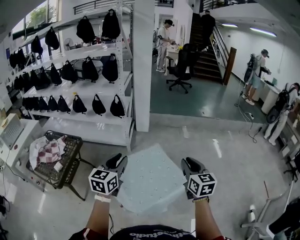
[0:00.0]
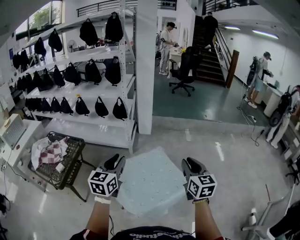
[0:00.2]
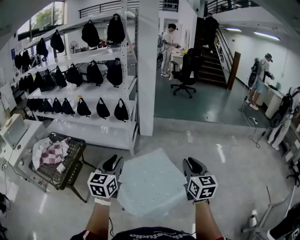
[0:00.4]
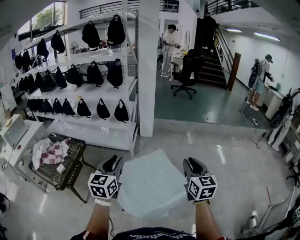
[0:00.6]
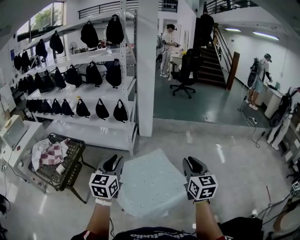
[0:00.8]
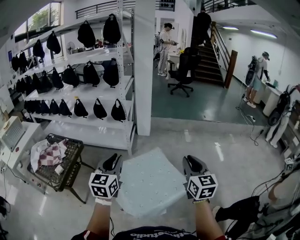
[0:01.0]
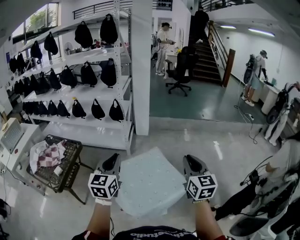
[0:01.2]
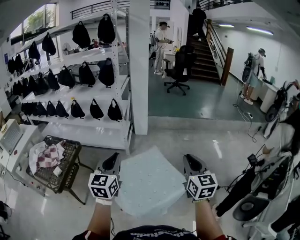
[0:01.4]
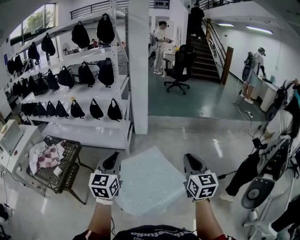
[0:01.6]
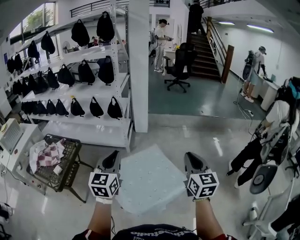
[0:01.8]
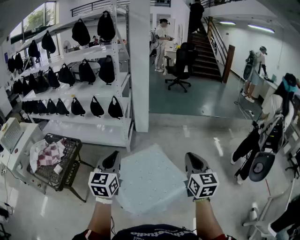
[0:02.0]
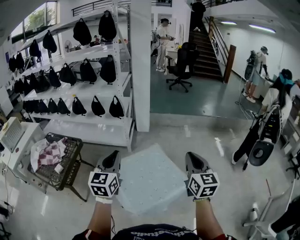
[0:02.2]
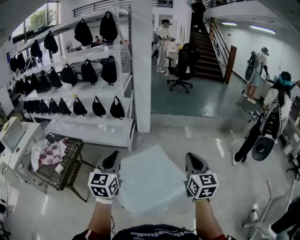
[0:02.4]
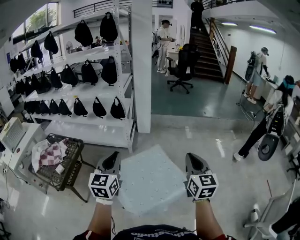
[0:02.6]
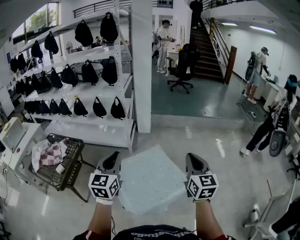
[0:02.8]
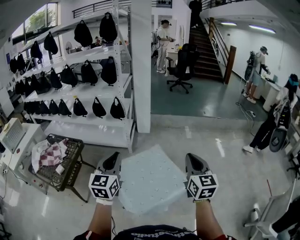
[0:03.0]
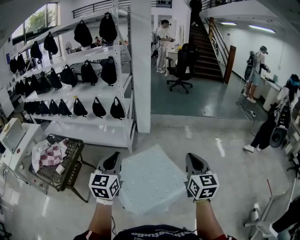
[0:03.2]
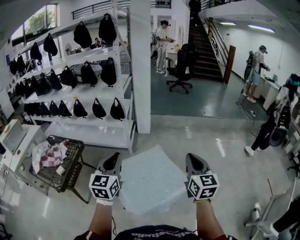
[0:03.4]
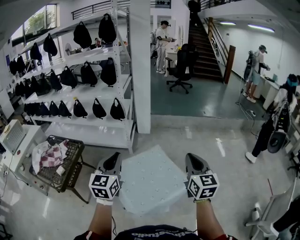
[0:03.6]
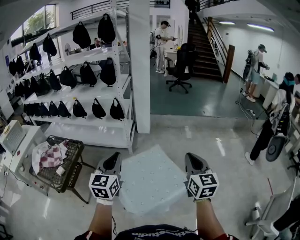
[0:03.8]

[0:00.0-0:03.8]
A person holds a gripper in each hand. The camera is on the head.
0:00.0 to 0:02.6: The grippers move only a little.
0:02.6 to 0:03.8: The two grippers keep their place.

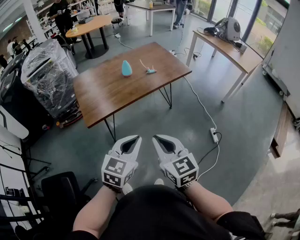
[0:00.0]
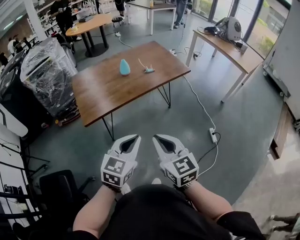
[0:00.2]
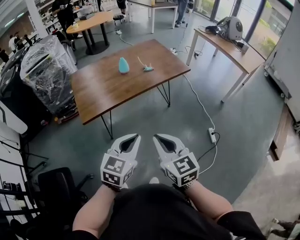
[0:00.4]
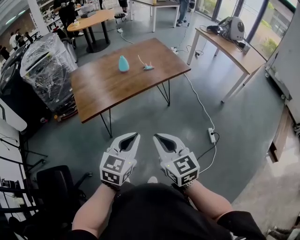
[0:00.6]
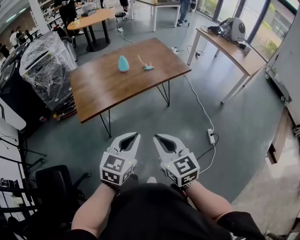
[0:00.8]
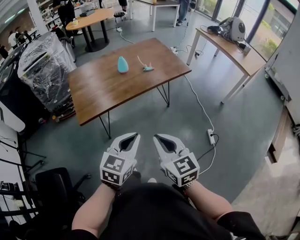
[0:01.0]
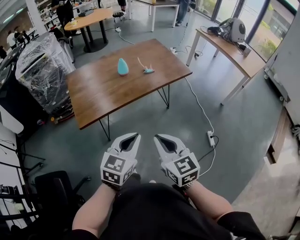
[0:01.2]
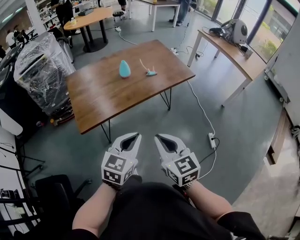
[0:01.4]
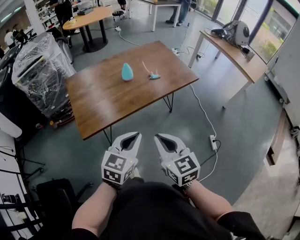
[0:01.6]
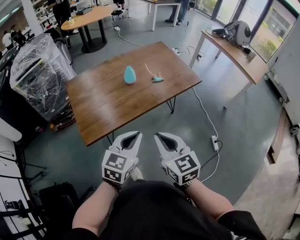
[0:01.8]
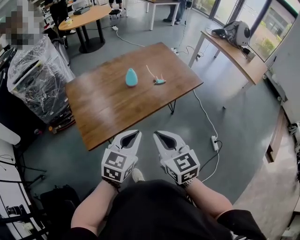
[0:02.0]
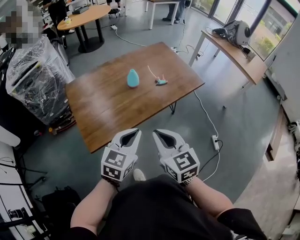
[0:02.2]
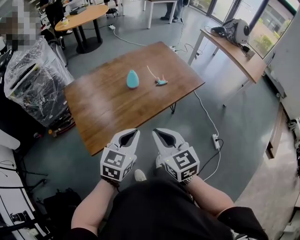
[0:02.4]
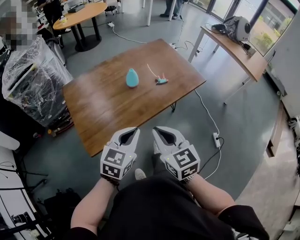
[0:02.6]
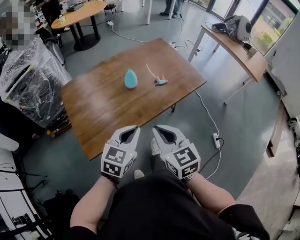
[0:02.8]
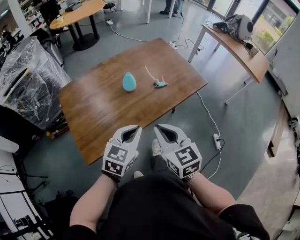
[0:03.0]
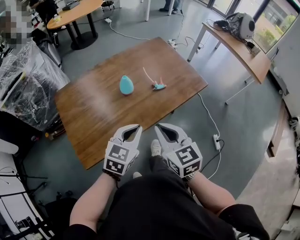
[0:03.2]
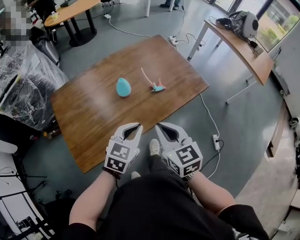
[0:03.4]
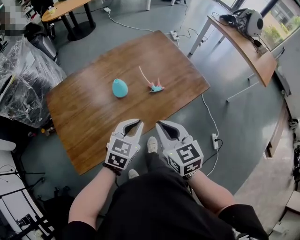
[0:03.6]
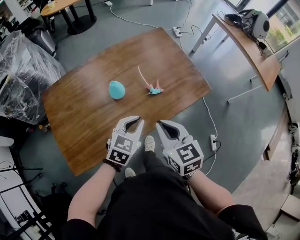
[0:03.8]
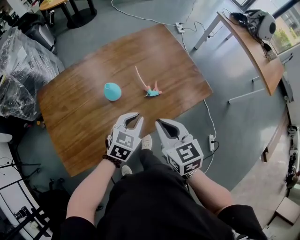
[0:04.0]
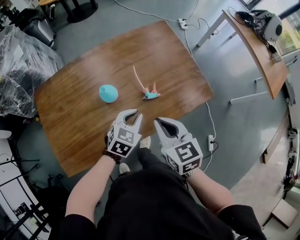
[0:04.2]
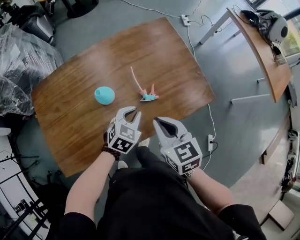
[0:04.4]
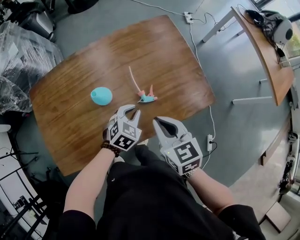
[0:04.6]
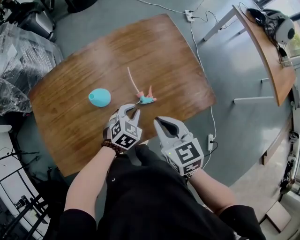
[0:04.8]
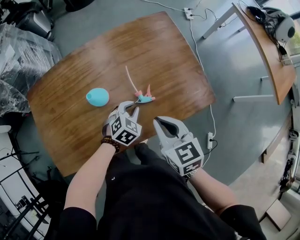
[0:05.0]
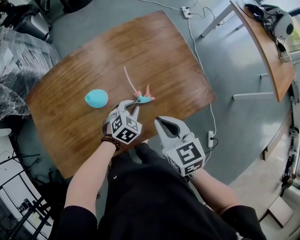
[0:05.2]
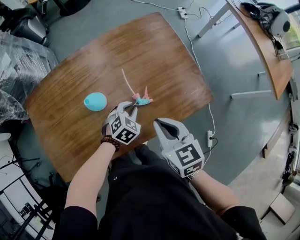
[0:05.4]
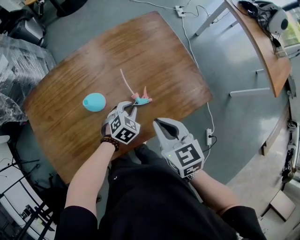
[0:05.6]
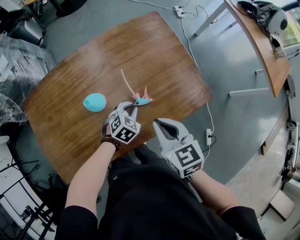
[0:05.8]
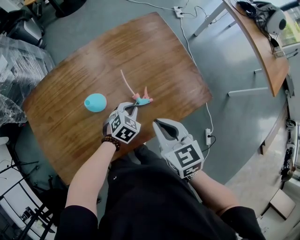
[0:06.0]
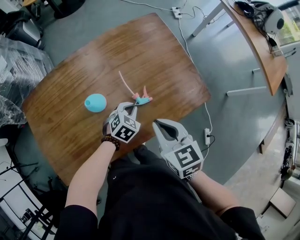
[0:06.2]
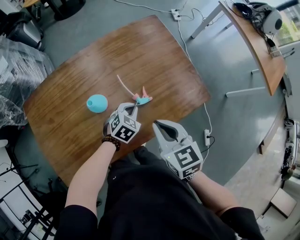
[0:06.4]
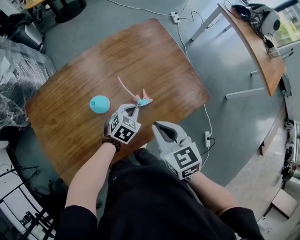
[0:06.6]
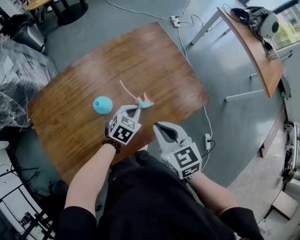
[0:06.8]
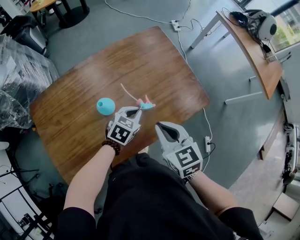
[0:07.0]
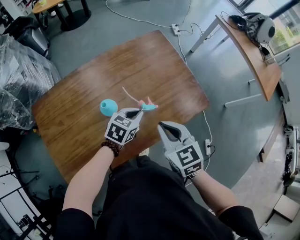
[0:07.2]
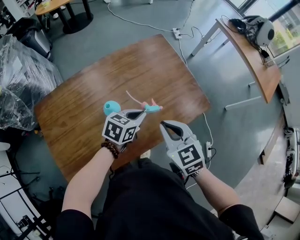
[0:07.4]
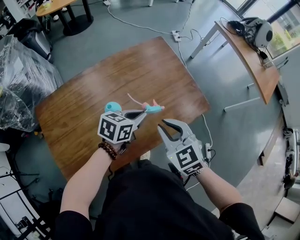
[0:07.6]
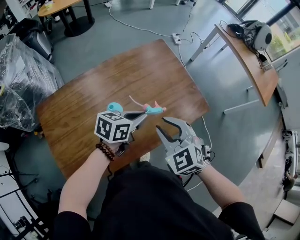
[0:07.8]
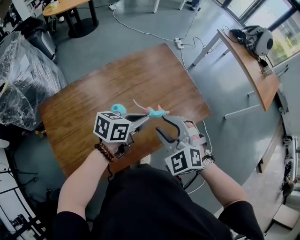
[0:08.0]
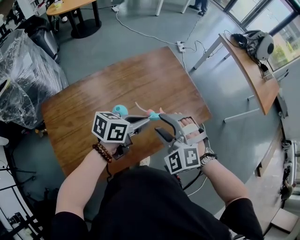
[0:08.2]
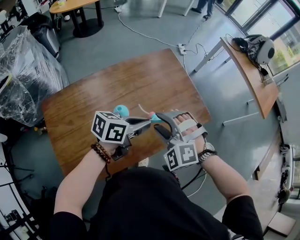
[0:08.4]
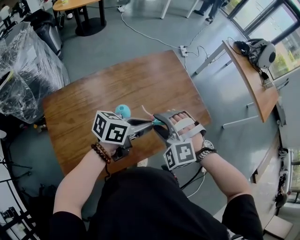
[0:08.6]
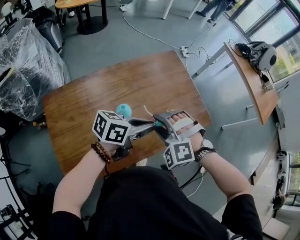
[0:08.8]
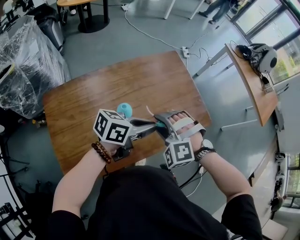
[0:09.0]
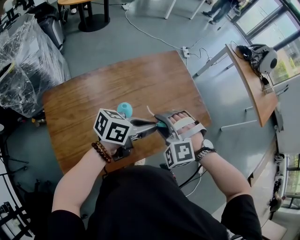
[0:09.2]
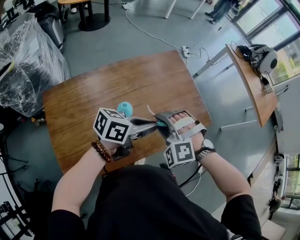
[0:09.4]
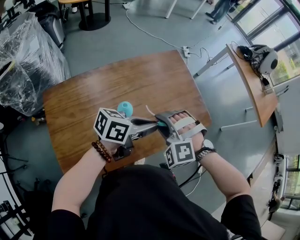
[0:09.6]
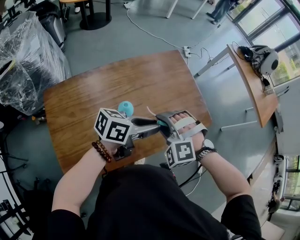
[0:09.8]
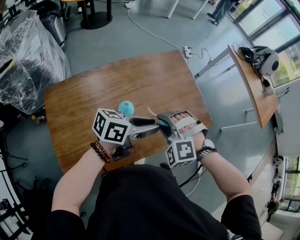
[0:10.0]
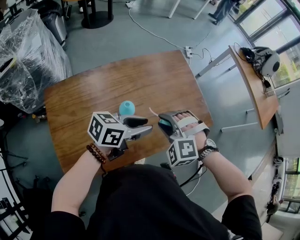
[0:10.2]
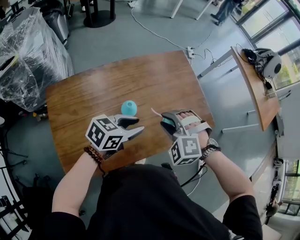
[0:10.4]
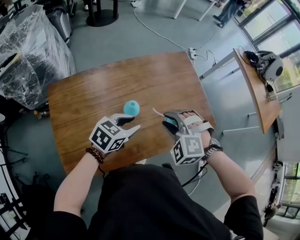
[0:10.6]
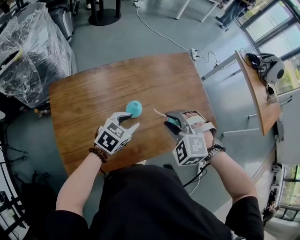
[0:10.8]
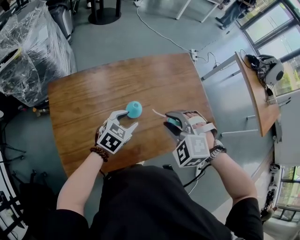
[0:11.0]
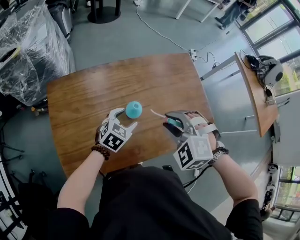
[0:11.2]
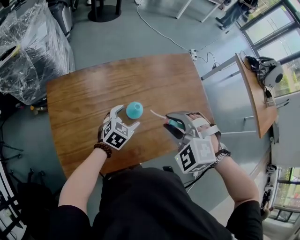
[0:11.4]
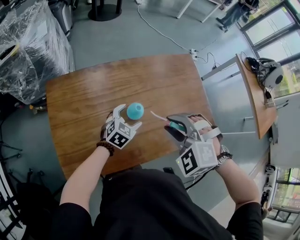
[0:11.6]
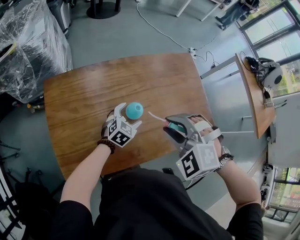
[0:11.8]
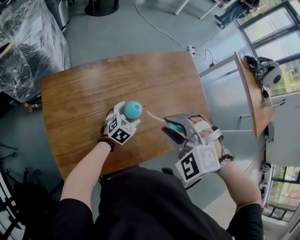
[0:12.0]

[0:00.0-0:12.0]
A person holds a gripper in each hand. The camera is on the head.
0:00.0 to 0:01.6: Both grippers travel together forward, about 15 cm.
0:01.6 to 0:03.0: The grippers both shift forward by some 15 cm.
0:03.0 to 0:04.4: The left gripper shifts about 30 cm forward and downward, and swivels some 20 degrees. The right gripper travels forward and to the right by approximately 25 cm.
0:04.4 to 0:06.0: The left gripper shifts approximately 10 cm downward.
0:06.0 to 0:07.6: The left gripper shifts roughly 15 cm upward, and swivels some 40 degrees, while the right gripper ends up roughly 5 cm from where it was, and rotates roughly 20 degrees.
0:07.6 to 0:09.0: The right gripper goes approximately 5 cm to the left, twists roughly 60 degrees counterclockwise, seen from behind, and opens; the left gripper is displaced upward by about 10 cm, and swivels about 20 degrees.
0:09.0 to 0:10.4: The left gripper moves to the left and downward, roughly 10 cm, and turns by some 20 degrees.
0:10.4 to 0:12.0: The right gripper is displaced upward and to the left by approximately 10 cm, while the left gripper travels downward and forward by about 20 cm, turns by roughly 30 degrees, and opens.

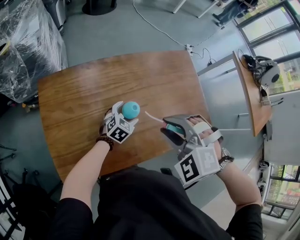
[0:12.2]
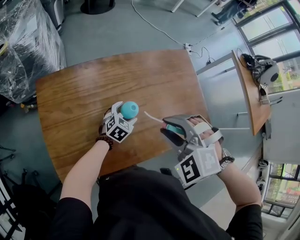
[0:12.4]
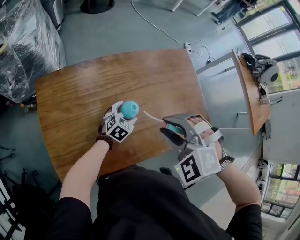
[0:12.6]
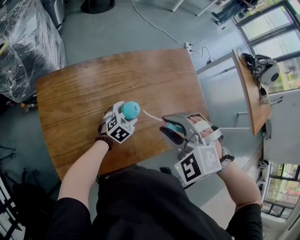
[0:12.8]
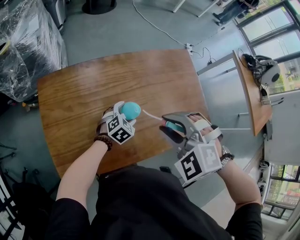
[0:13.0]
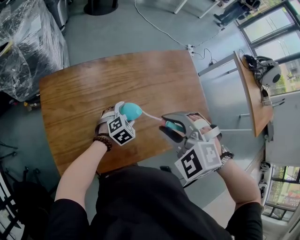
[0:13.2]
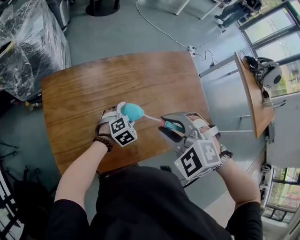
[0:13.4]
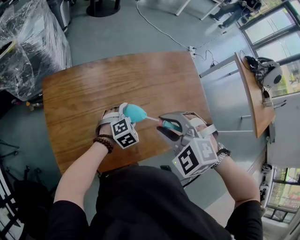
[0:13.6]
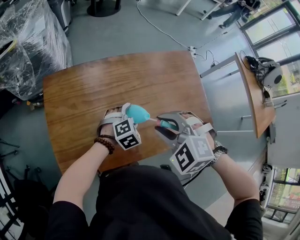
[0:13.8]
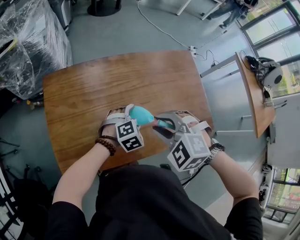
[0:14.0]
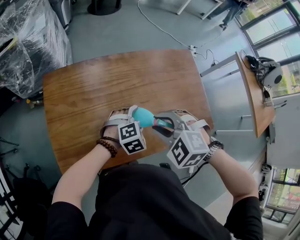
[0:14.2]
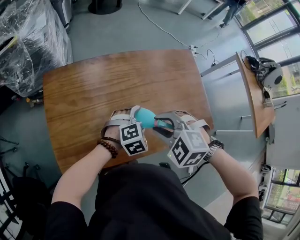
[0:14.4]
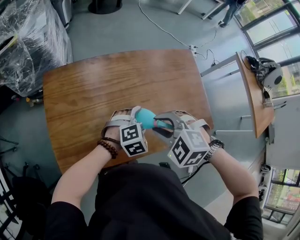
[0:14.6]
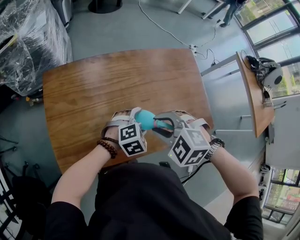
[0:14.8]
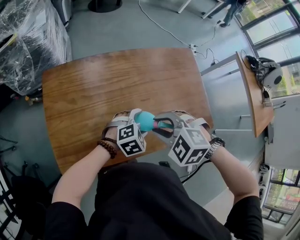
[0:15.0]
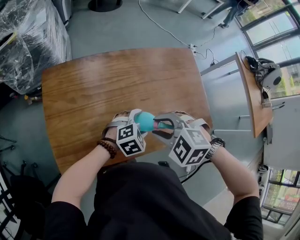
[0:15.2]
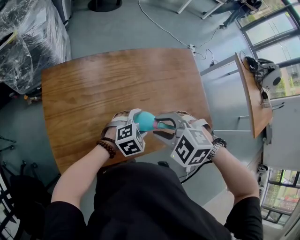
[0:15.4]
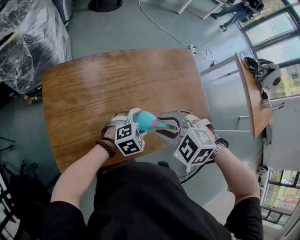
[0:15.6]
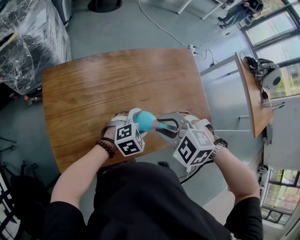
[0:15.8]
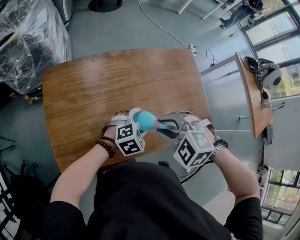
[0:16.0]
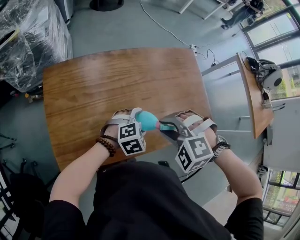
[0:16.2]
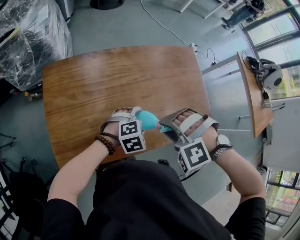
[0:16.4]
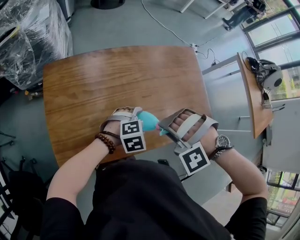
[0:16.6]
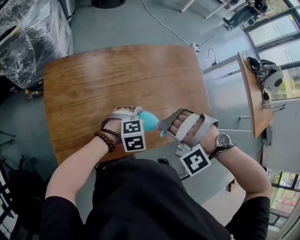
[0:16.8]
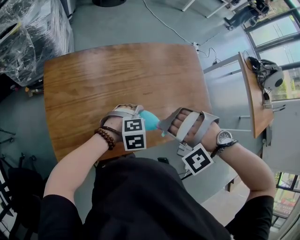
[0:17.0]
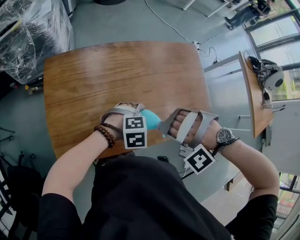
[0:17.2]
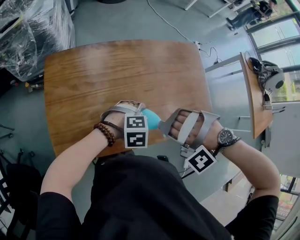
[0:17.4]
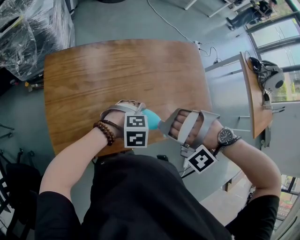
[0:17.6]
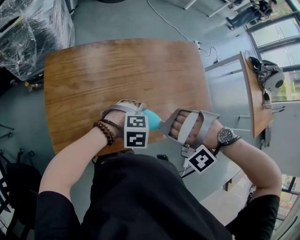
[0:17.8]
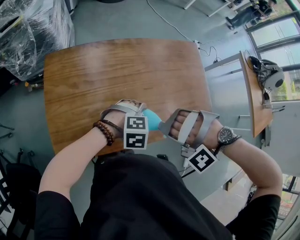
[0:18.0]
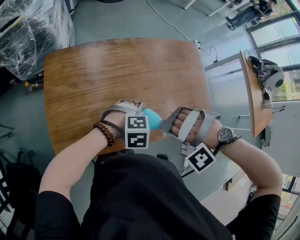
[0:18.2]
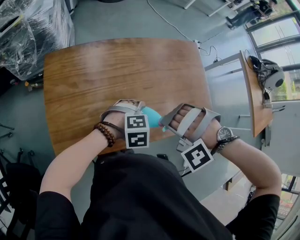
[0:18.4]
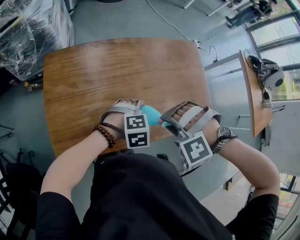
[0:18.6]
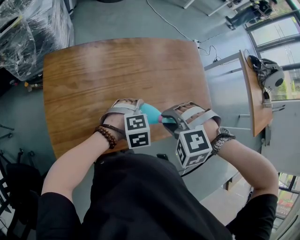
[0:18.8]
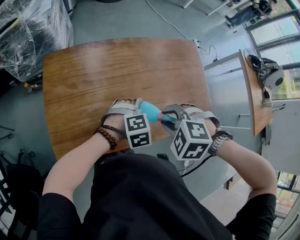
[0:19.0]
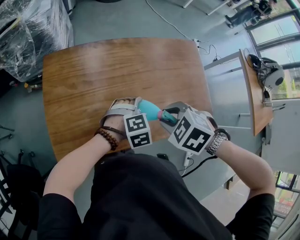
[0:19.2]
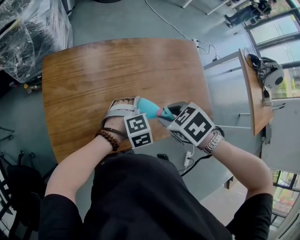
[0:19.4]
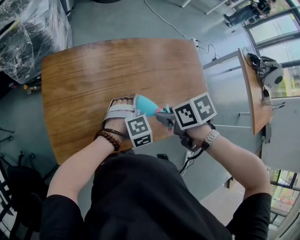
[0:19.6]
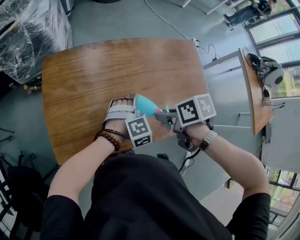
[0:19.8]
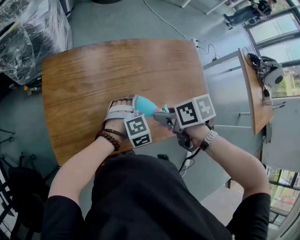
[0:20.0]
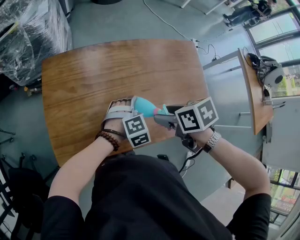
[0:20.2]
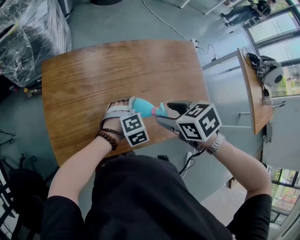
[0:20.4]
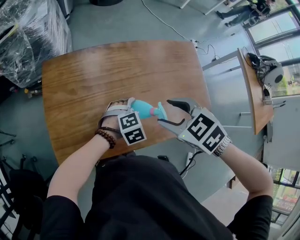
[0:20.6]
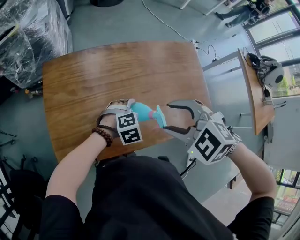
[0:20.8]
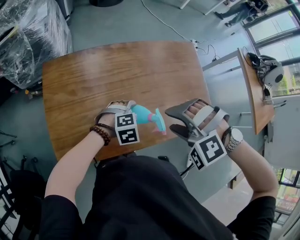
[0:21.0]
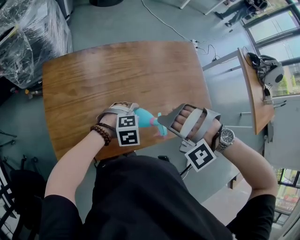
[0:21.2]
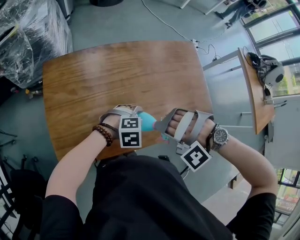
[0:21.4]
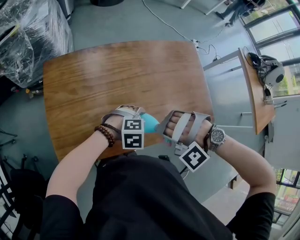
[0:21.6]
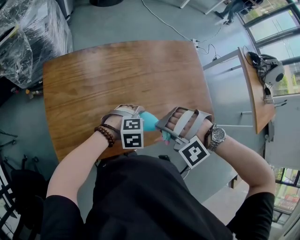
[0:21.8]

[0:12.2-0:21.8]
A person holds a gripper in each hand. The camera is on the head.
0:12.2 to 0:13.8: The left gripper shifts by approximately 5 cm, and rotates roughly 30 degrees.
0:13.8 to 0:15.4: The left gripper goes some 5 cm backward.
0:15.4 to 0:17.0: The right gripper rolls counterclockwise, seen from behind, by some 60 degrees.
0:17.0 to 0:18.6: The right gripper rotates roughly 20 degrees.
0:18.6 to 0:20.2: The left gripper shifts by approximately 5 cm. The right gripper shifts by roughly 5 cm, twists roughly 110 degrees clockwise, seen from behind, and opens.
0:20.2 to 0:21.8: The right gripper moves approximately 10 cm upward and comes back, rotates around the line of its fingers by approximately 120 degrees, counterclockwise from behind, and closes its fingers, while the left gripper shifts by some 5 cm, and rotates approximately 30 degrees.
